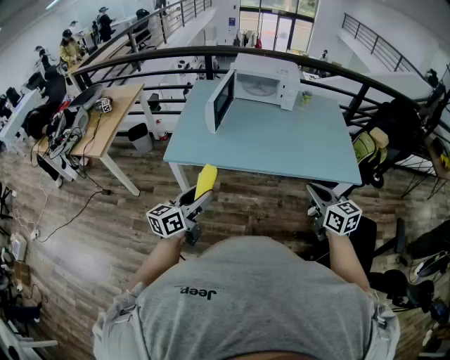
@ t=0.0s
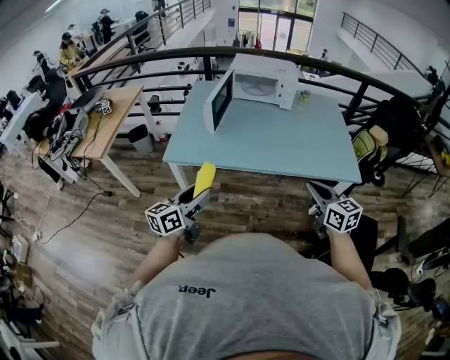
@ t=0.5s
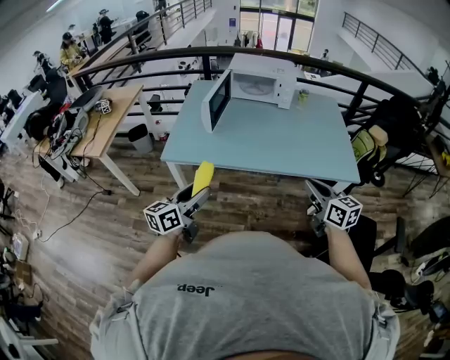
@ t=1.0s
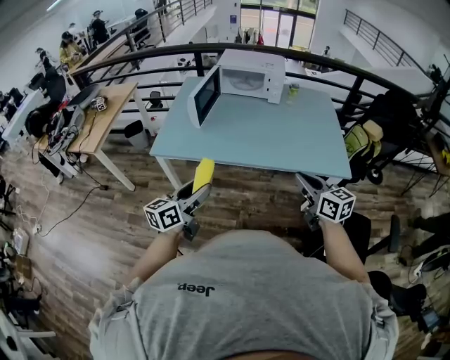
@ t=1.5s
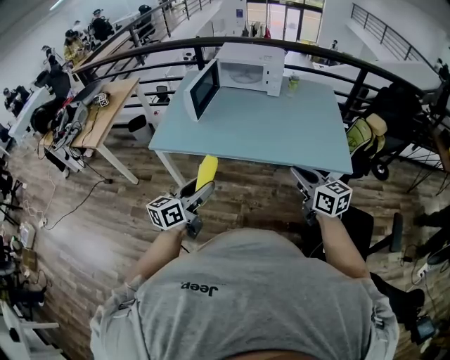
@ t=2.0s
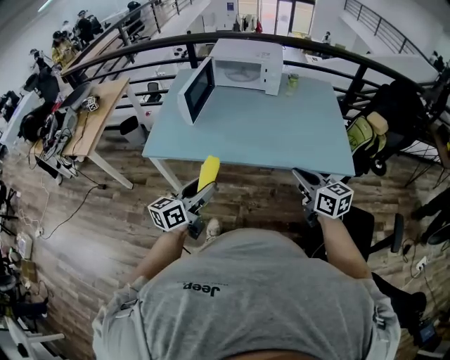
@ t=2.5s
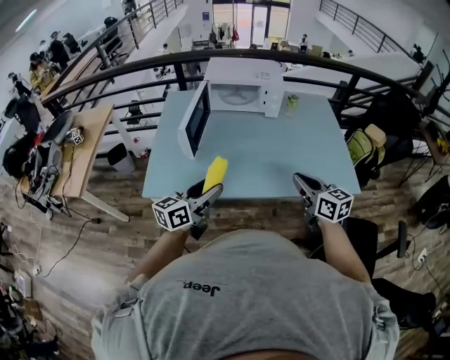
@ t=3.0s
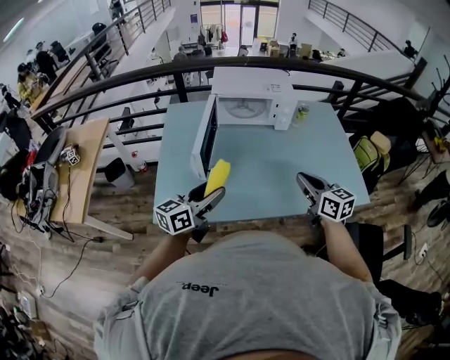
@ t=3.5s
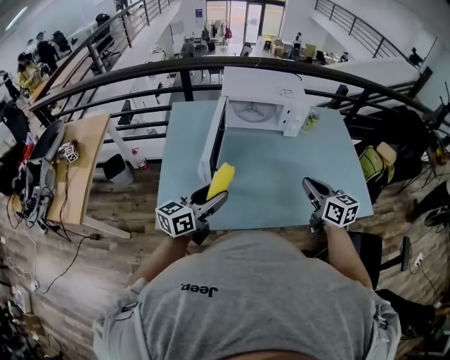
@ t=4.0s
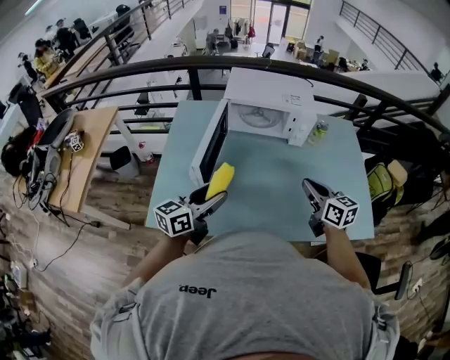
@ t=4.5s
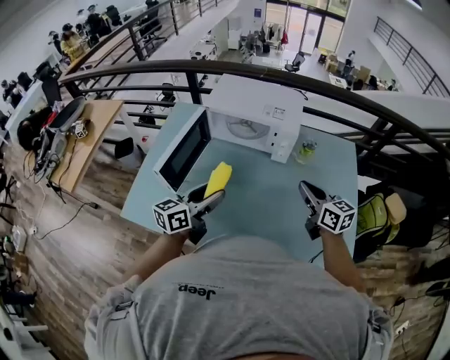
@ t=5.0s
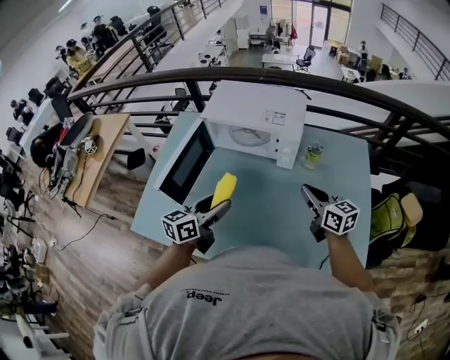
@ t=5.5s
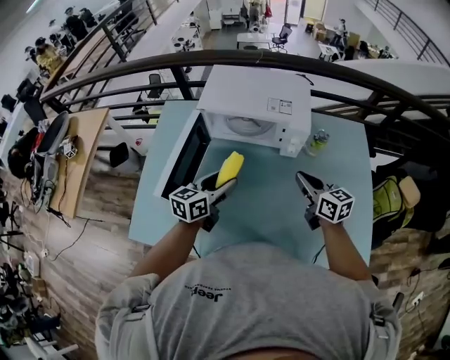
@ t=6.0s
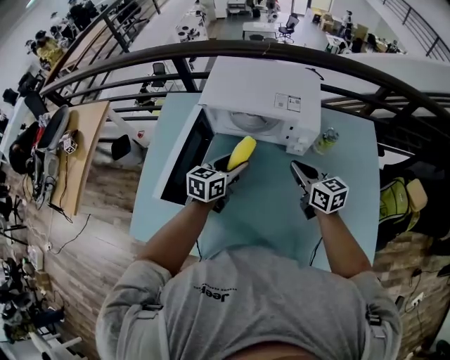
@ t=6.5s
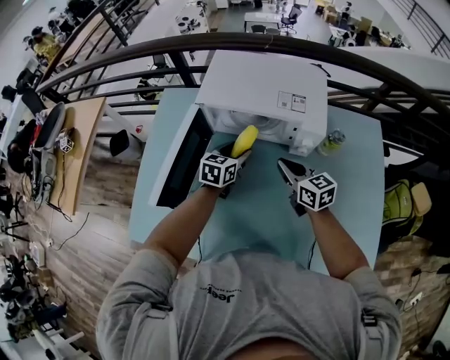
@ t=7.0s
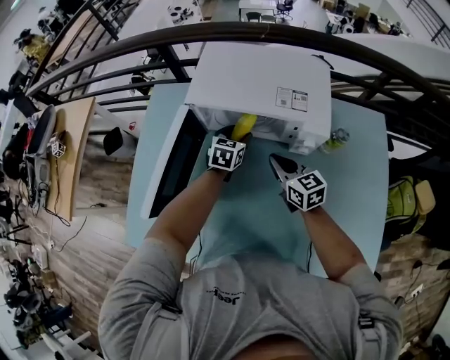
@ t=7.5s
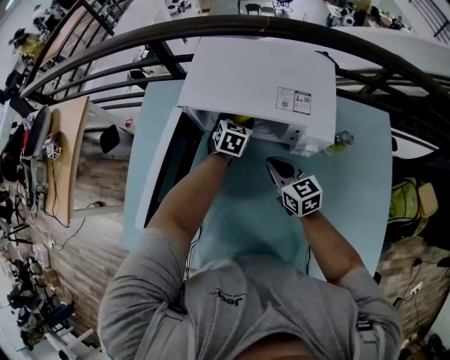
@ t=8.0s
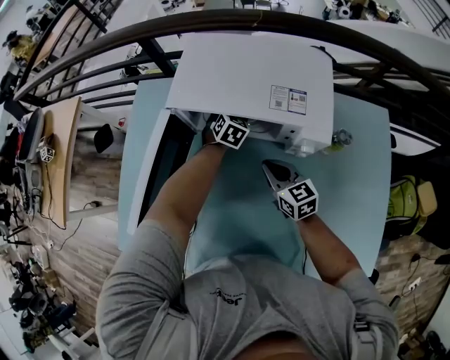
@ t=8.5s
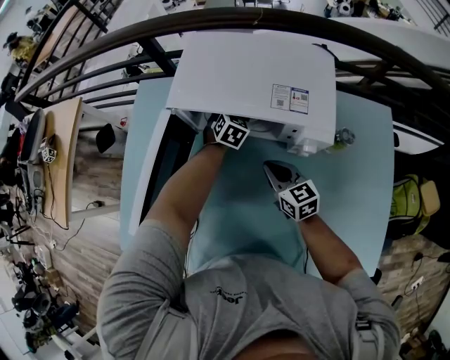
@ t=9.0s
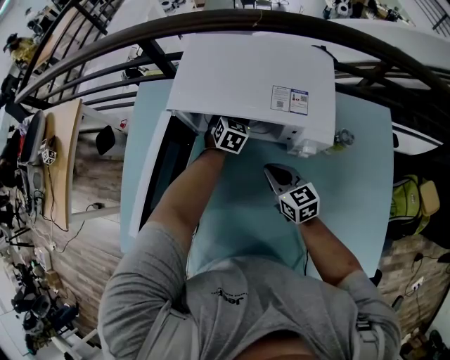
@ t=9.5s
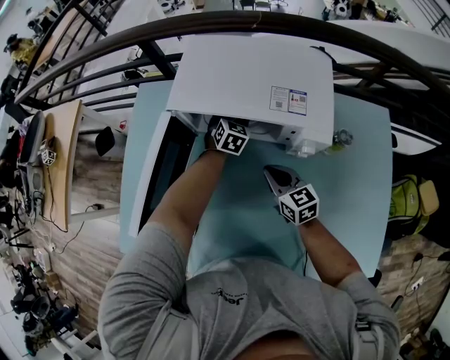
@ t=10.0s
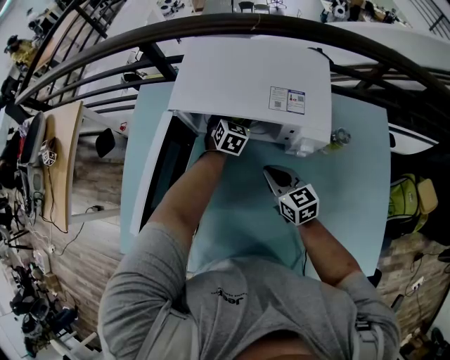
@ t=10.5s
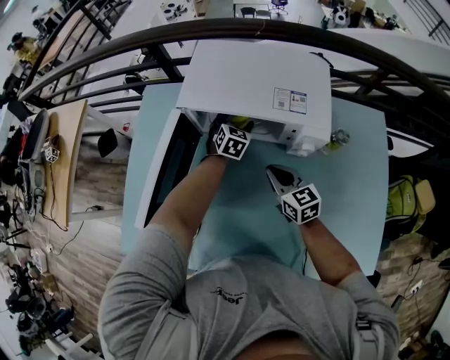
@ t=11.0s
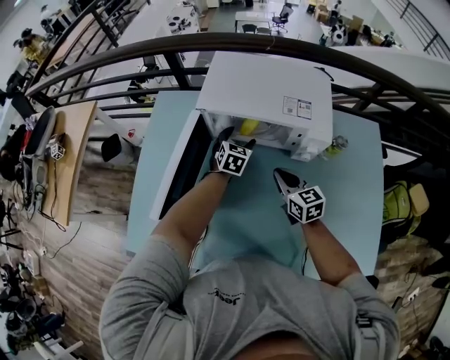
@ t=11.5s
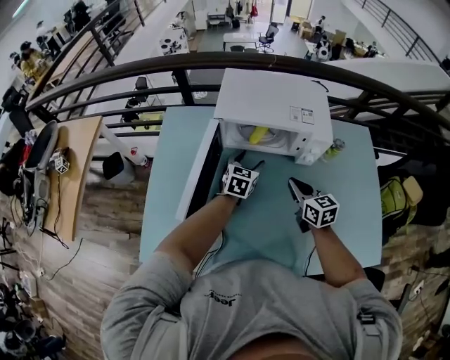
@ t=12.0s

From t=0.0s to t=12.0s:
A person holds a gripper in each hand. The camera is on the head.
From t=0.0s to t=2.0s: The right gripper is displaced to the right by roughly 10 cm, while the left gripper moves to the right, roughly 15 cm.
From t=2.0s to t=4.0s: Both grippers travel together forward and to the left, about 35 cm.
From t=4.0s to t=6.0s: The two grippers go about 25 cm forward and to the right.
From t=6.0s to t=8.0s: The left gripper is displaced forward and downward by roughly 30 cm, and rotates roughly 40 degrees. The right gripper moves forward, downward and to the left, about 20 cm.
From t=8.0s to t=10.0s: The grippers stay close to where they were, moving slightly.
From t=10.0s to t=12.0s: The left gripper goes some 20 cm backward, upward and to the left, and rotates approximately 20 degrees. Meanwhile the right gripper moves upward and backward, approximately 10 cm.

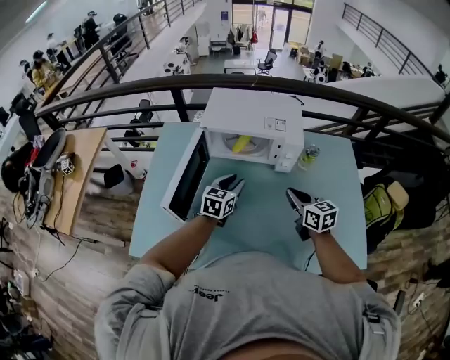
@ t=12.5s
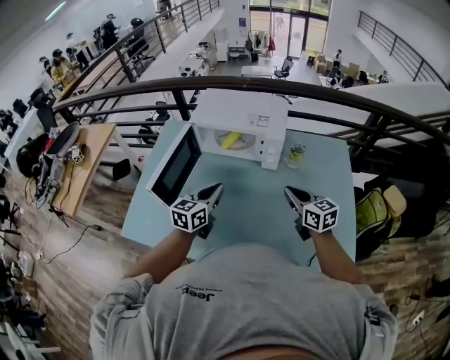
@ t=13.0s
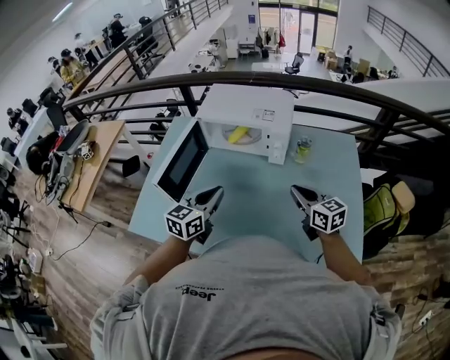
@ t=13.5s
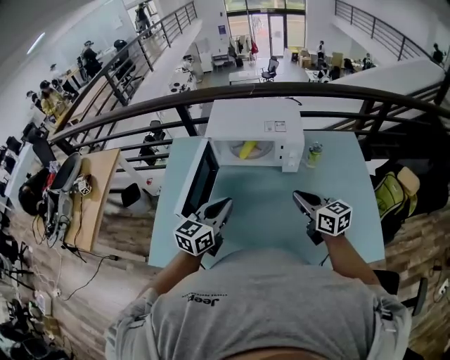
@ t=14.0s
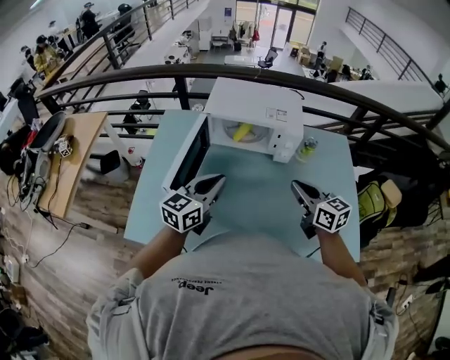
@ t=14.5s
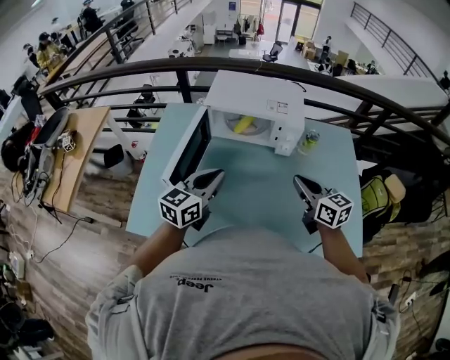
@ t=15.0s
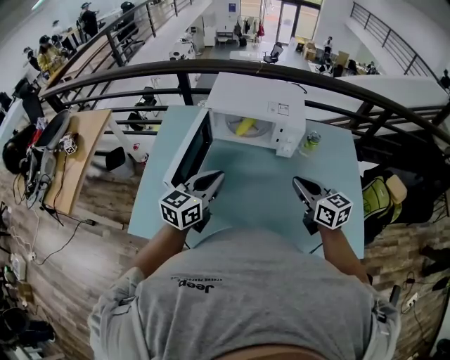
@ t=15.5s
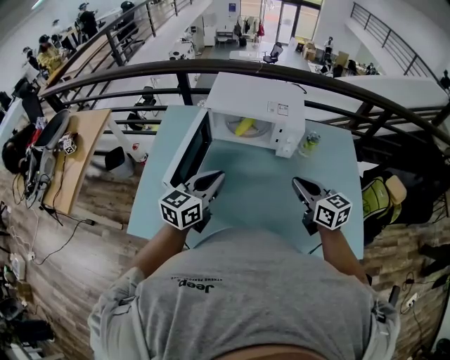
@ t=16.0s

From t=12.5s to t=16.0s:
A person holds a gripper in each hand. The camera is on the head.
From t=12.5s to t=14.5s: The left gripper travels upward, backward and to the left by roughly 20 cm; the right gripper heads upward and backward, covering roughly 10 cm, and reaches roughly 10 cm to the right, then returns.
From t=14.5s to t=16.0s: The grippers make only small movements.

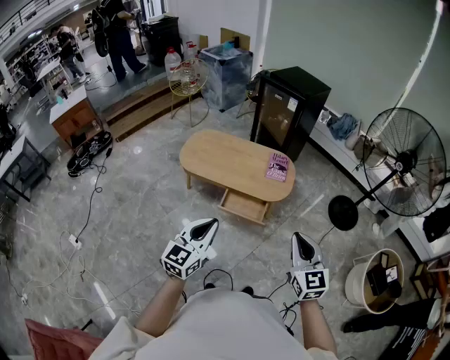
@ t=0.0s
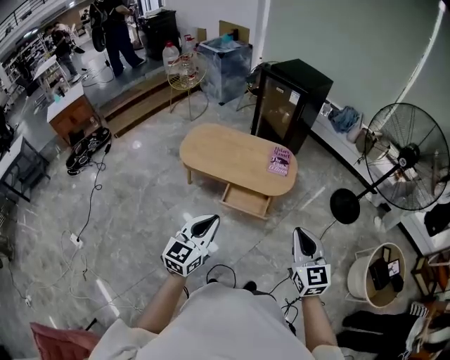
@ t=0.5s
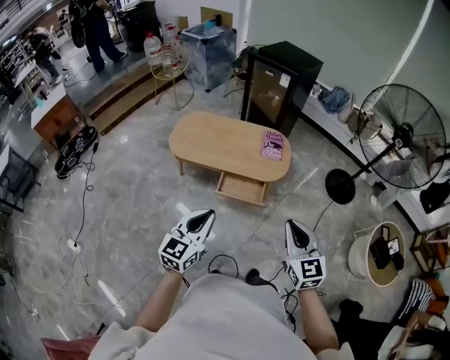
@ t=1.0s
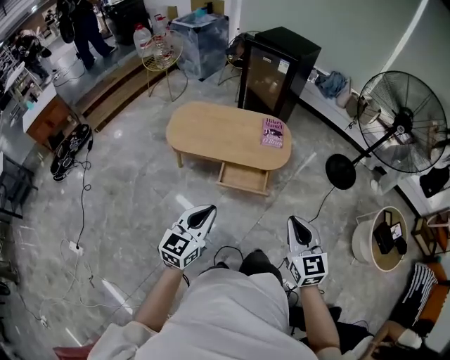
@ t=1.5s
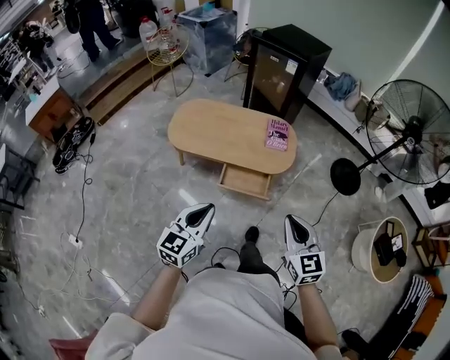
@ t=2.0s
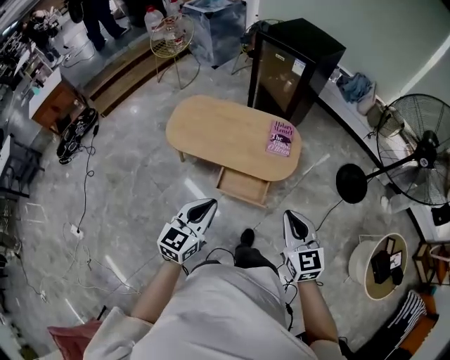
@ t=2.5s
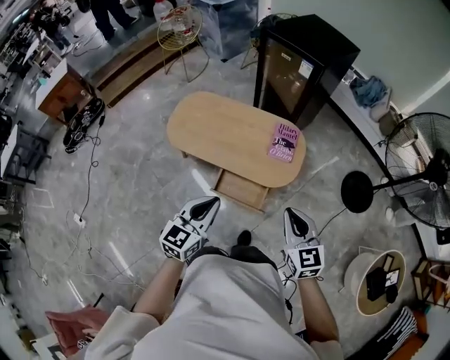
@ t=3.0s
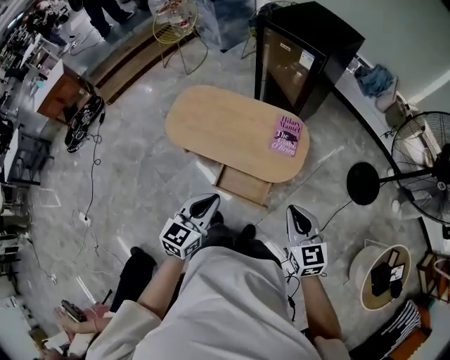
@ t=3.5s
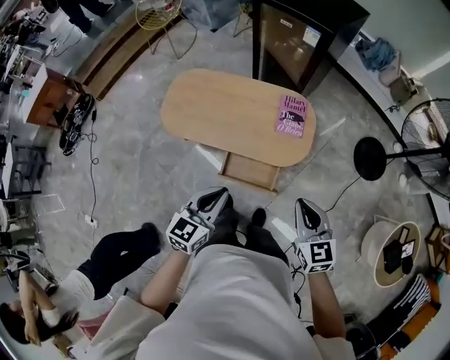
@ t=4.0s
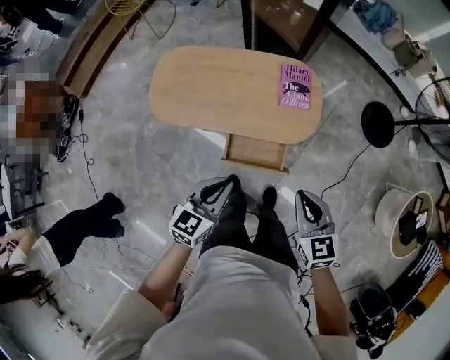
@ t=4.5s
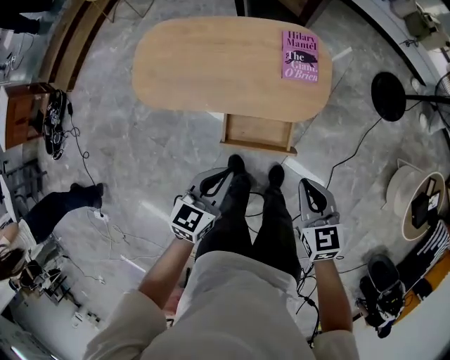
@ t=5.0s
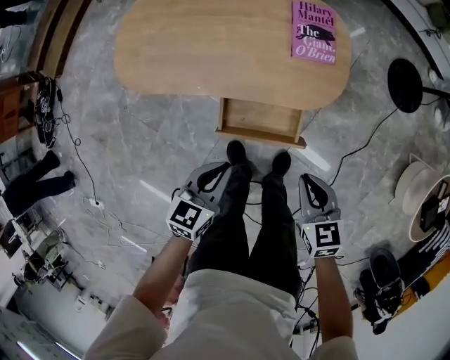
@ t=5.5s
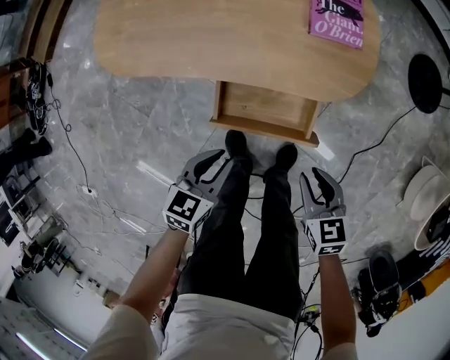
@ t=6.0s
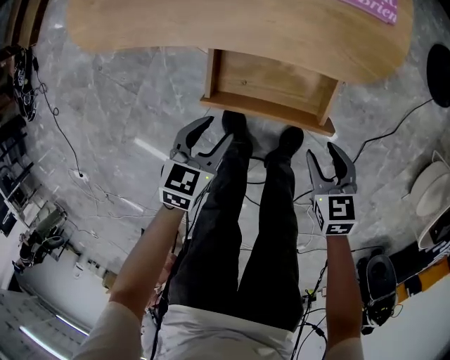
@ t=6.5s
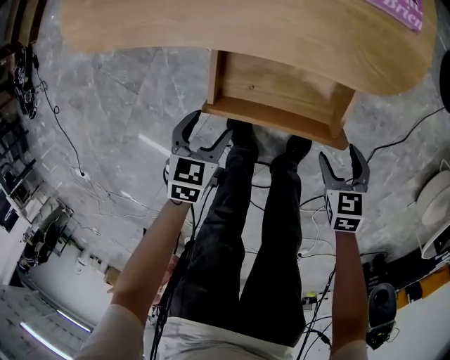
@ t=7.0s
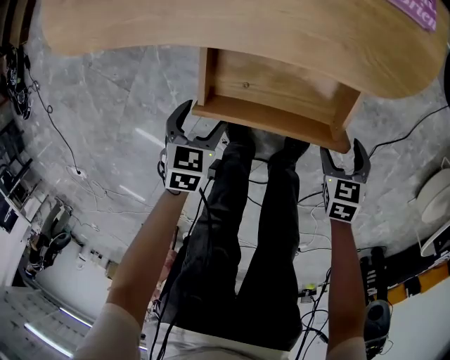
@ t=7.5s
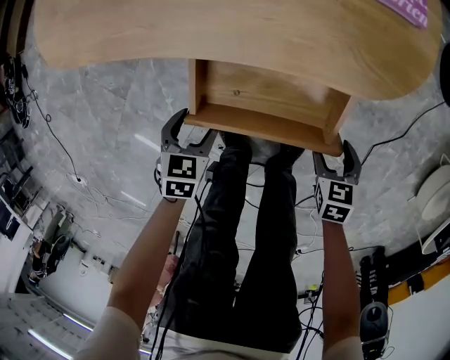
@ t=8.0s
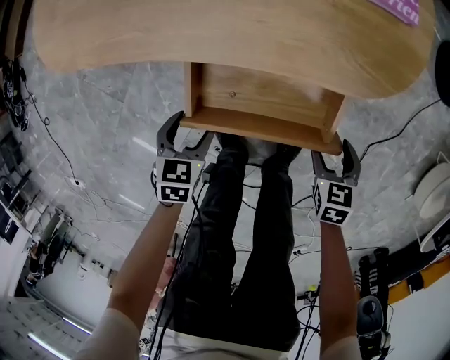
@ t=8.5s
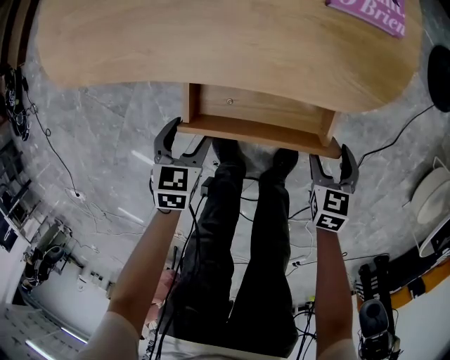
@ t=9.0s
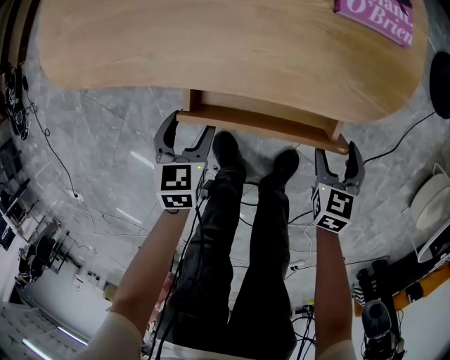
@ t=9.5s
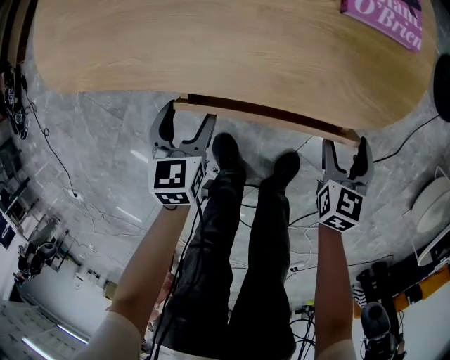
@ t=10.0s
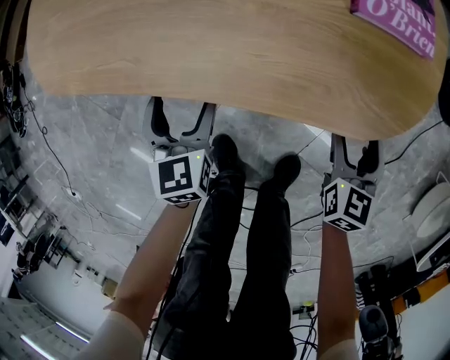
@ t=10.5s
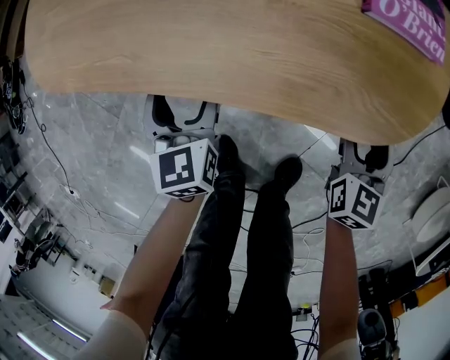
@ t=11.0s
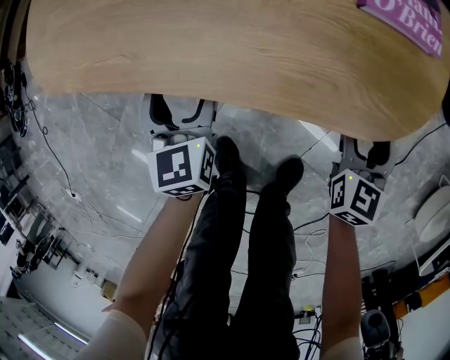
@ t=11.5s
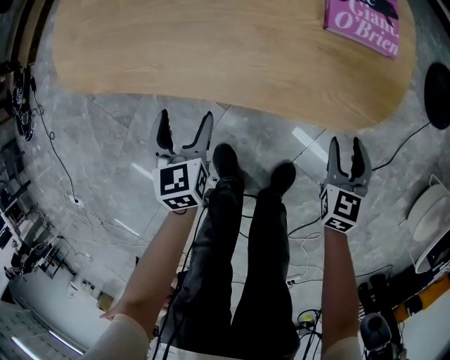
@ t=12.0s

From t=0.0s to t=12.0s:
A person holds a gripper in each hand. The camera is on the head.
From t=0.0s to t=2.0s: The left gripper heads forward, downward and to the left, covering roughly 10 cm; the right gripper travels to the left, downward and forward by some 10 cm.
From t=2.0s to t=4.0s: The grippers both shift forward by about 25 cm.
From t=4.0s to t=6.0s: Both grippers travel together downward, approximately 40 cm. The left gripper turns by about 30 degrees. Meanwhile the right gripper turns by about 30 degrees.
From t=6.0s to t=8.0s: Both grippers move downward, roughly 25 cm. The left gripper swivels roughly 30 degrees, and opens. Meanwhile the right gripper changes its angle by roughly 20 degrees, and opens up.
From t=8.0s to t=10.0s: The two grippers go roughly 10 cm forward. The right gripper swivels roughly 20 degrees; the left gripper changes its angle by roughly 20 degrees.
From t=10.0s to t=12.0s: The right gripper closes. Meanwhile the left gripper is displaced upward by roughly 5 cm.
